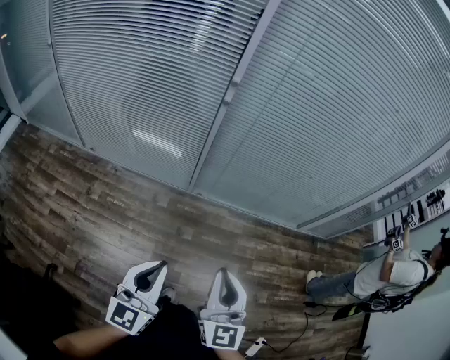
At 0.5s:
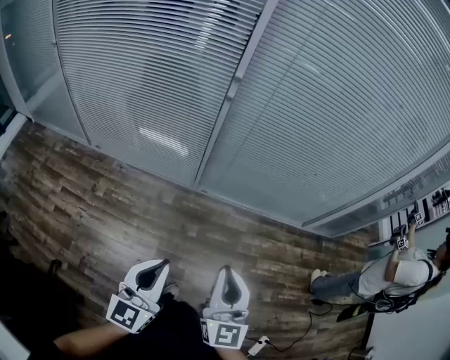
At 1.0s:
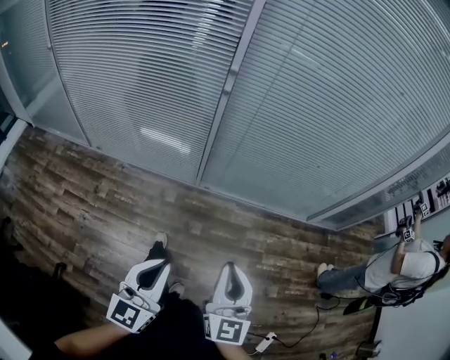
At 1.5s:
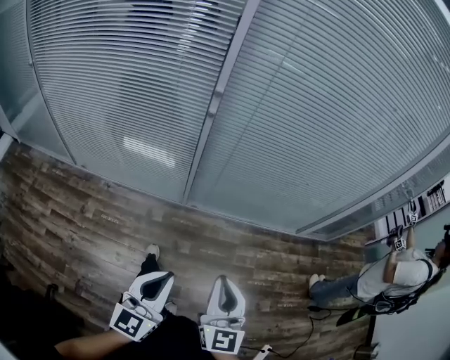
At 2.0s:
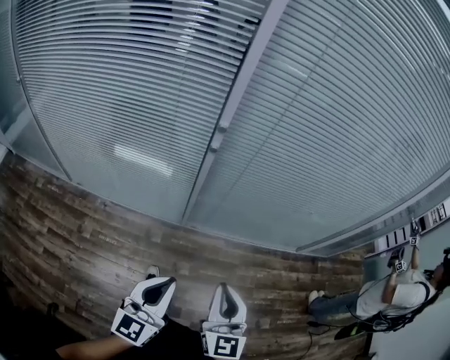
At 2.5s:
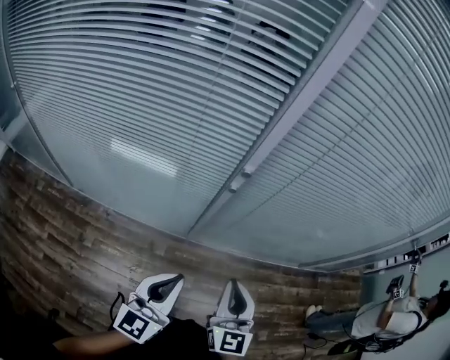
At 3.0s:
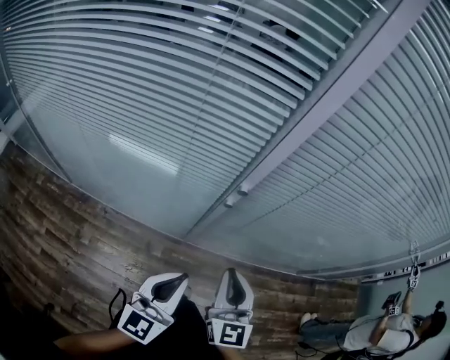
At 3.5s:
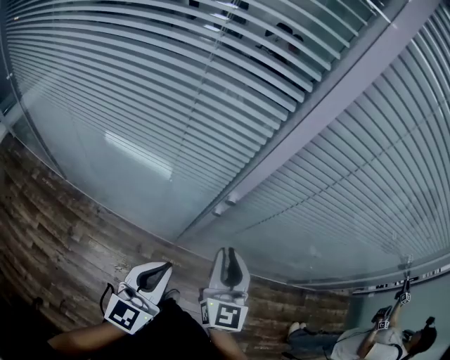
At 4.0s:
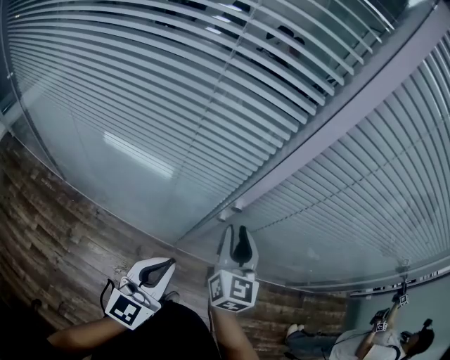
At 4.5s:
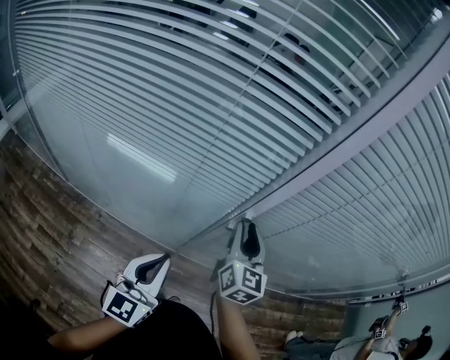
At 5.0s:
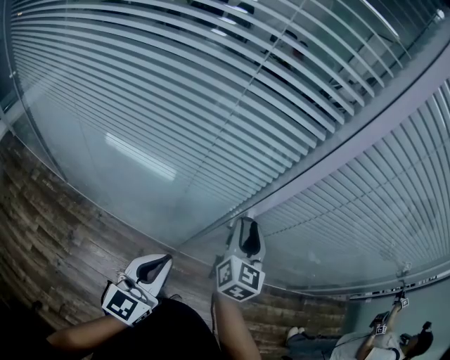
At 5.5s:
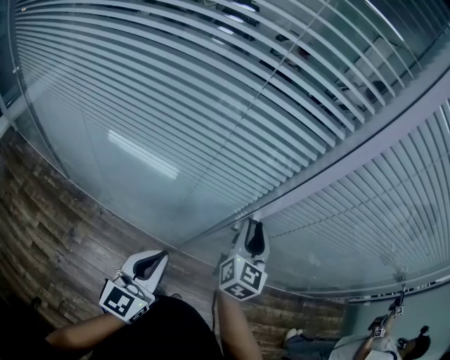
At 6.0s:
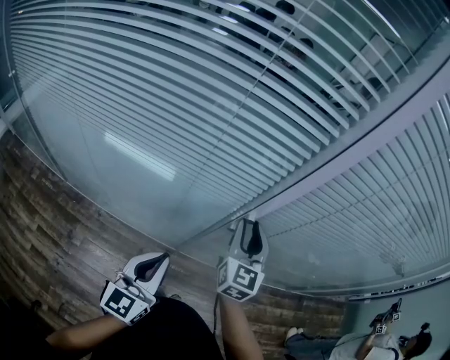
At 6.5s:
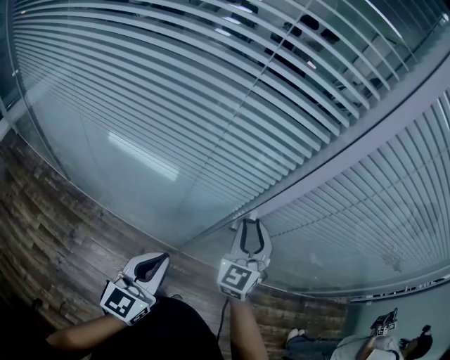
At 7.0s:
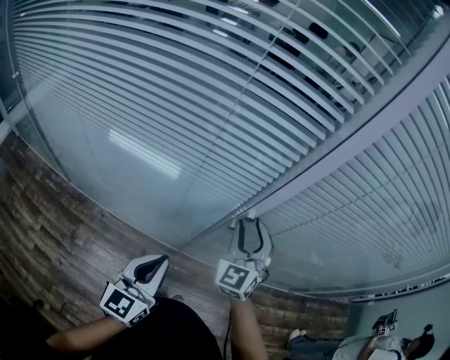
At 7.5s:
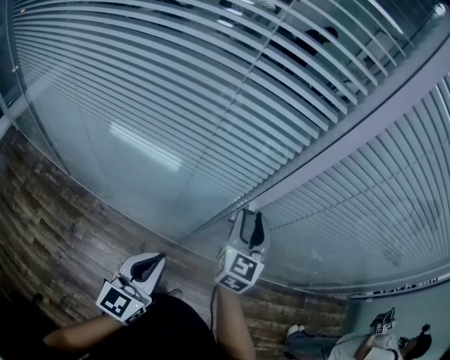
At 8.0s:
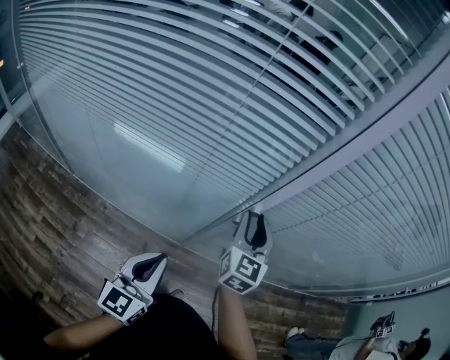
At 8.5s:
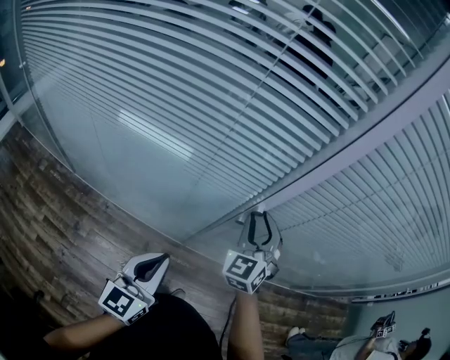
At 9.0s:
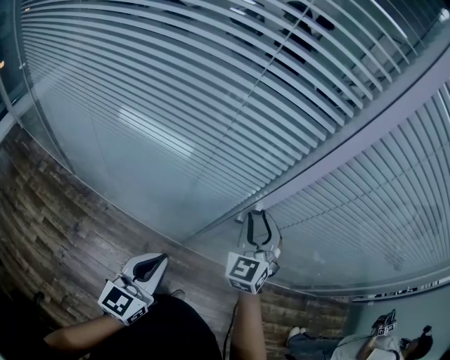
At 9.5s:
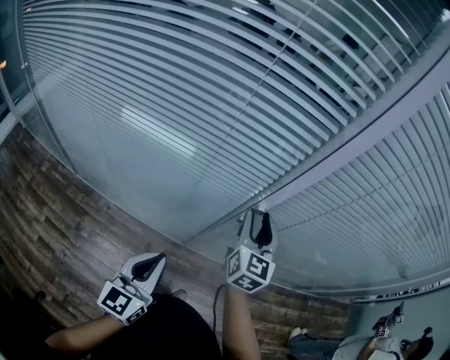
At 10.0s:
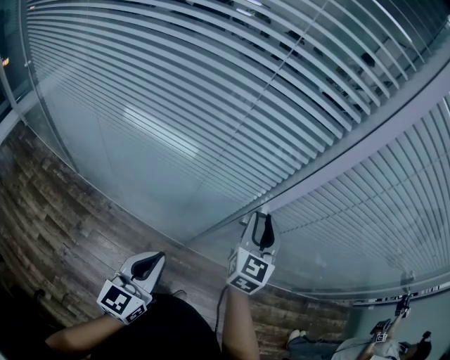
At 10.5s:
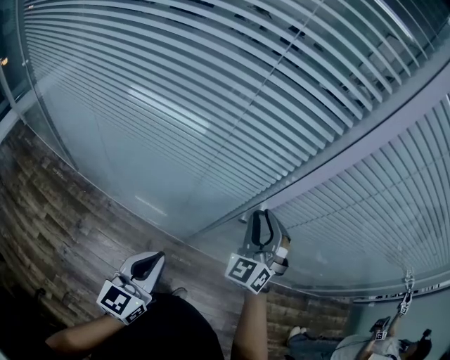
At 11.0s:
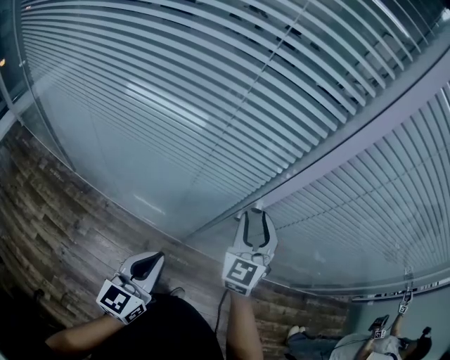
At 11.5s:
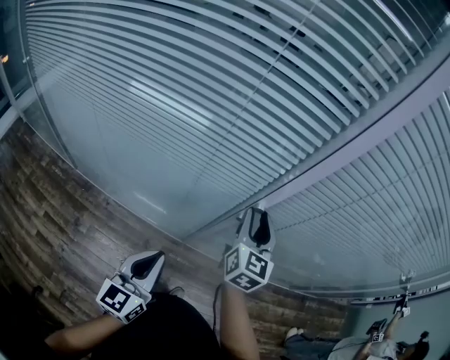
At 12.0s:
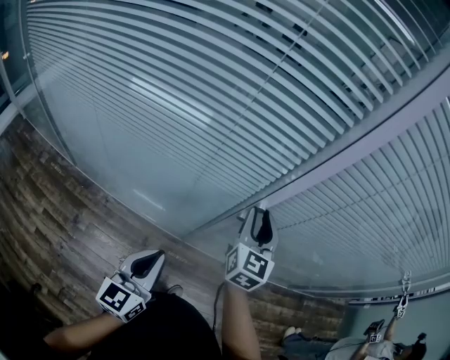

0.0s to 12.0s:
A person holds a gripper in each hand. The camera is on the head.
0.0s to 2.0s: Both grippers travel together forward, some 20 cm.
2.0s to 4.0s: Both grippers travel together forward, about 35 cm. The right gripper opens its fingers.
4.0s to 6.0s: The left gripper travels to the left by some 5 cm.

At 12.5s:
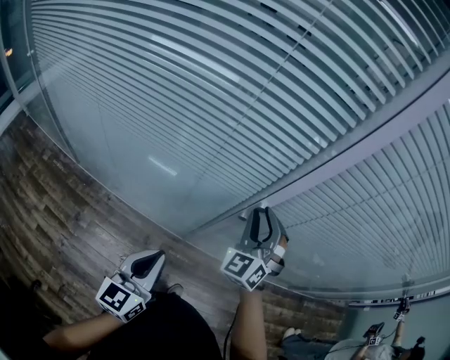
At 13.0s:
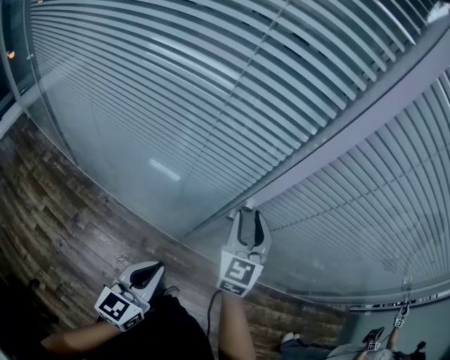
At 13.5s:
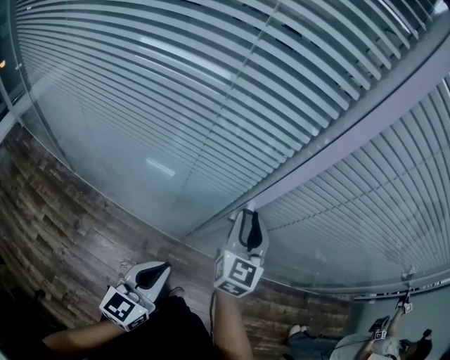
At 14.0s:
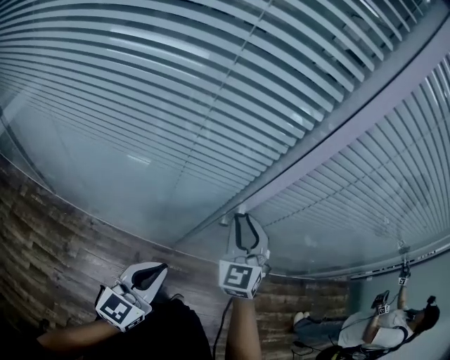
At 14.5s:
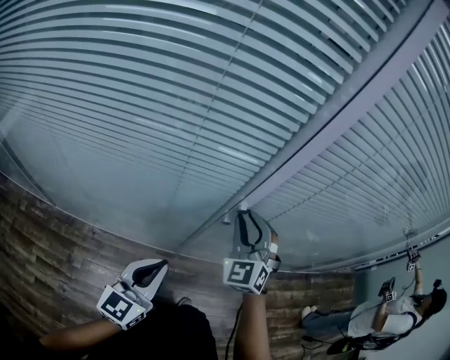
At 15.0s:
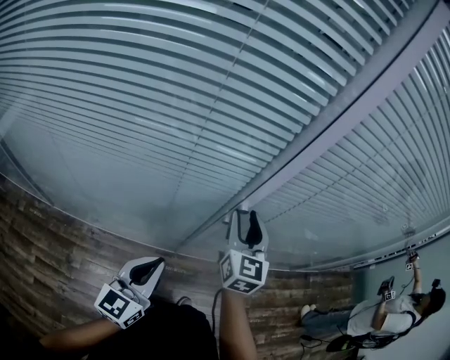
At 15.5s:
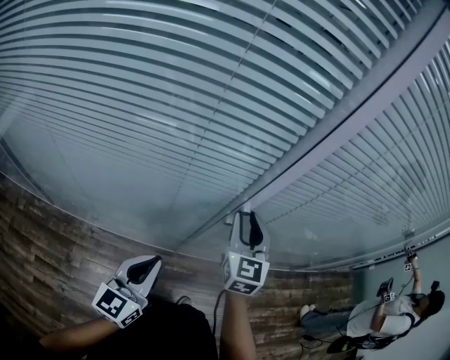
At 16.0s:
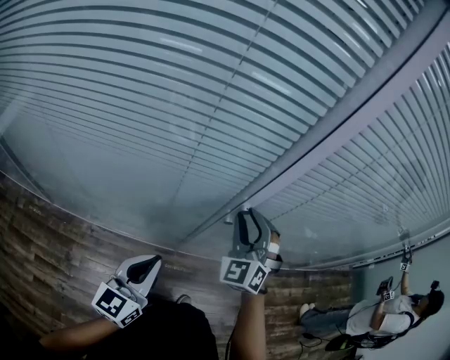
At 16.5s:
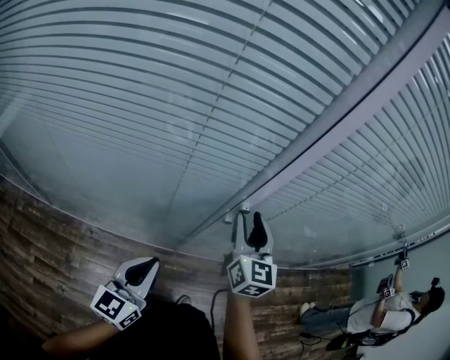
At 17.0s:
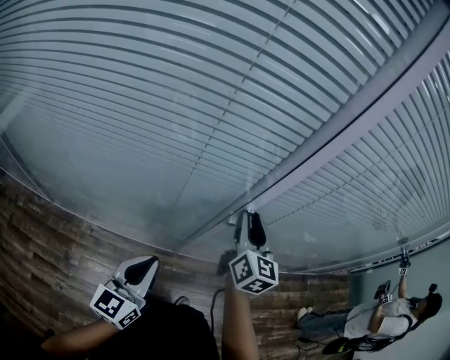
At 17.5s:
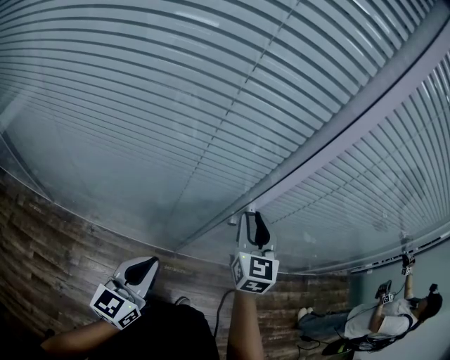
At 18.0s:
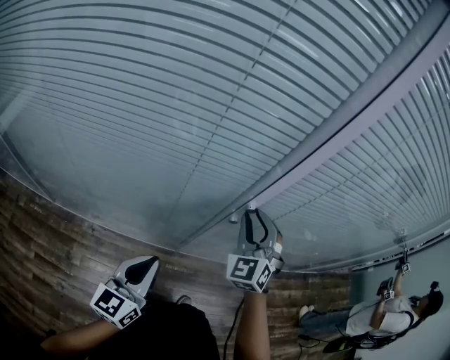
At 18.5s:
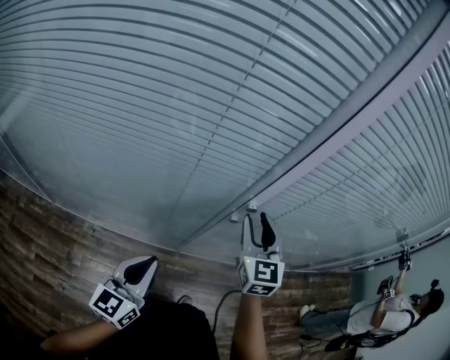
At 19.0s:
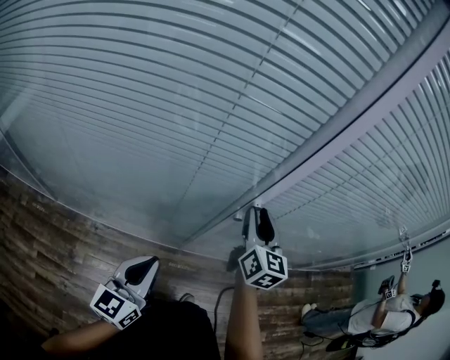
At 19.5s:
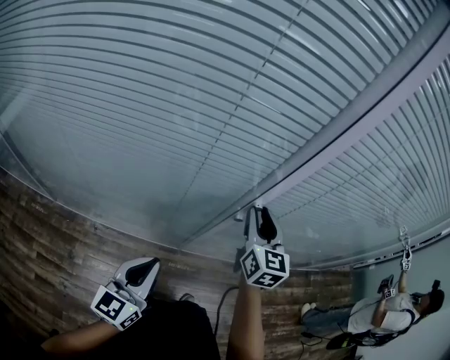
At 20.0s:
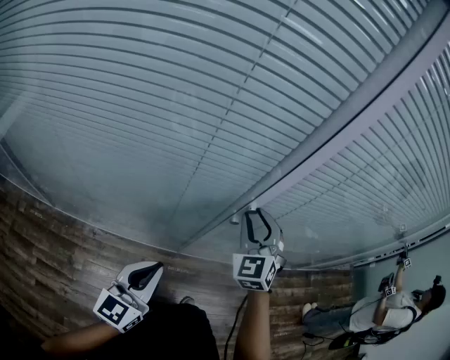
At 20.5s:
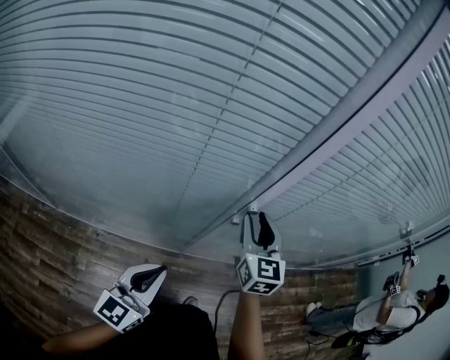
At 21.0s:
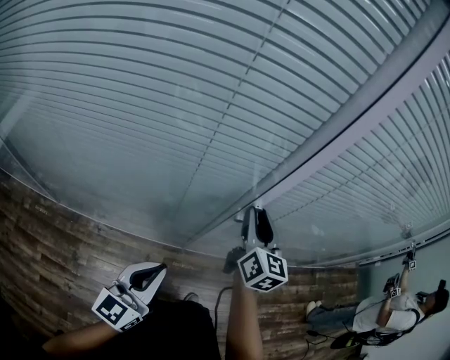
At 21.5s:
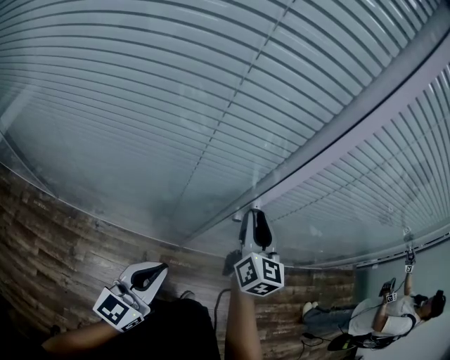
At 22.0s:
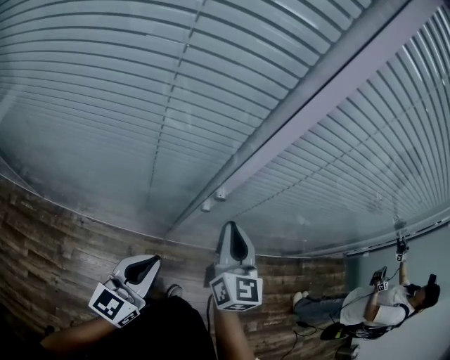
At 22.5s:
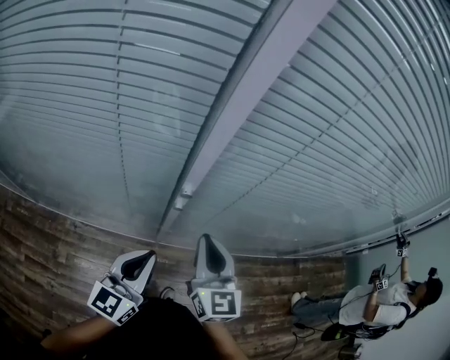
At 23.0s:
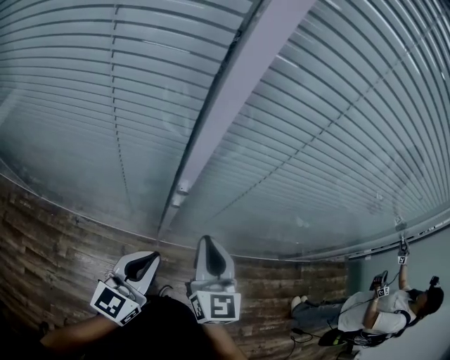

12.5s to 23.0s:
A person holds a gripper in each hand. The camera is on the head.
12.5s to 14.5s: The left gripper rotates approximately 20 degrees.
14.5s to 16.5s: The right gripper twists about 50 degrees clockwise, seen from behind.
21.0s to 23.0s: The right gripper goes about 10 cm backward and to the right, and closes; the left gripper goes roughly 15 cm to the right.

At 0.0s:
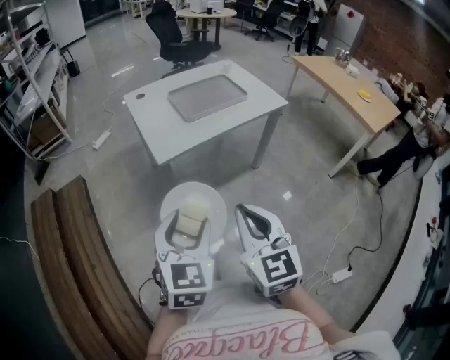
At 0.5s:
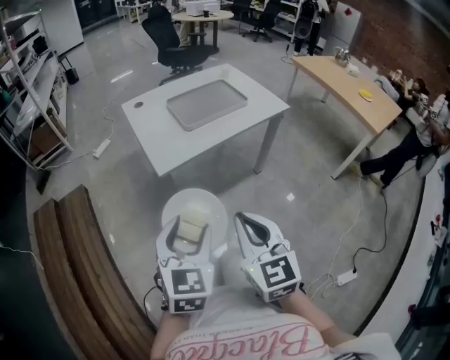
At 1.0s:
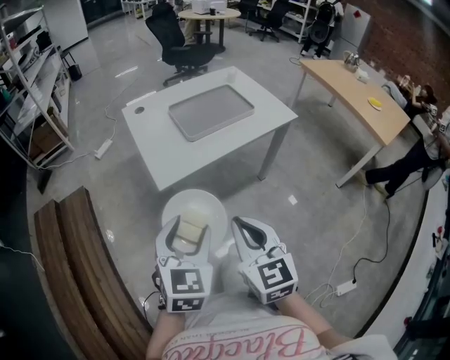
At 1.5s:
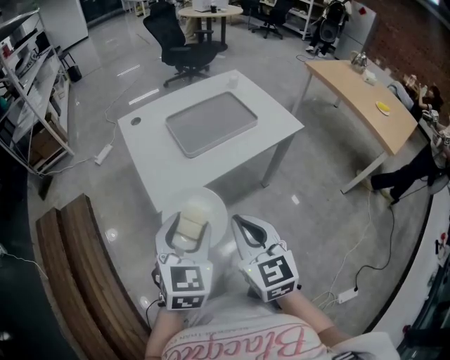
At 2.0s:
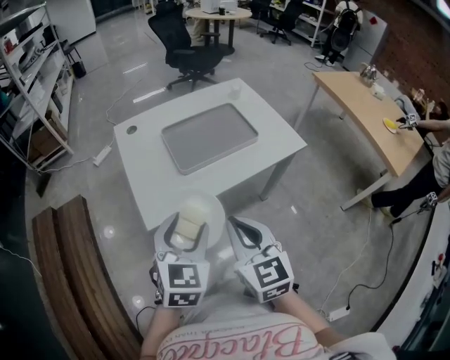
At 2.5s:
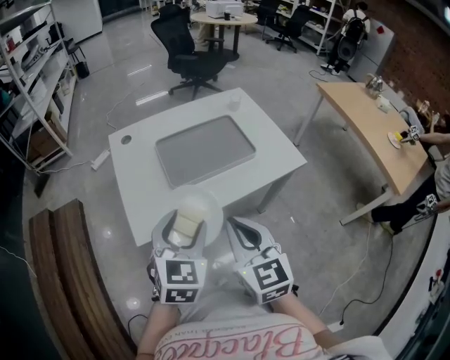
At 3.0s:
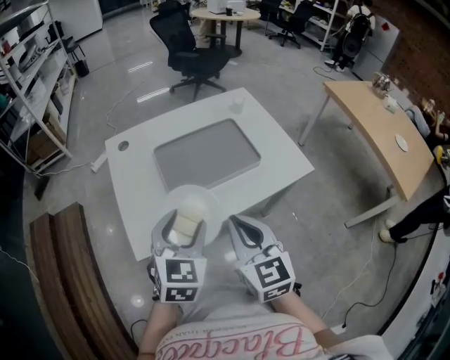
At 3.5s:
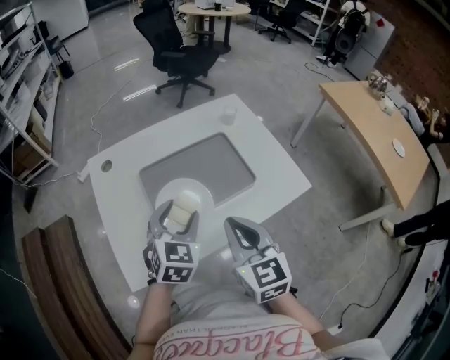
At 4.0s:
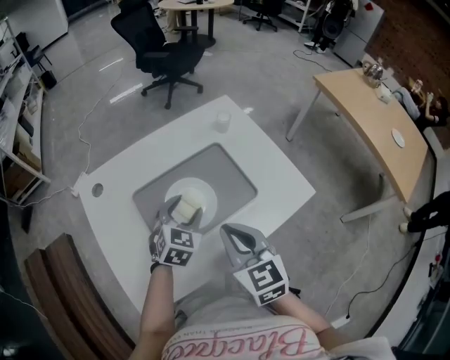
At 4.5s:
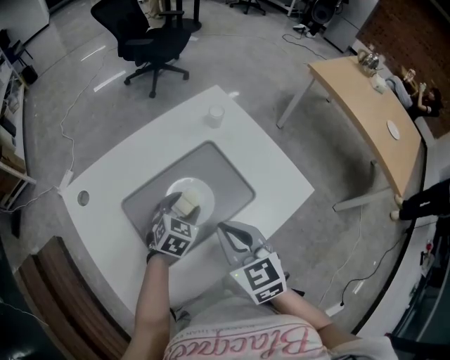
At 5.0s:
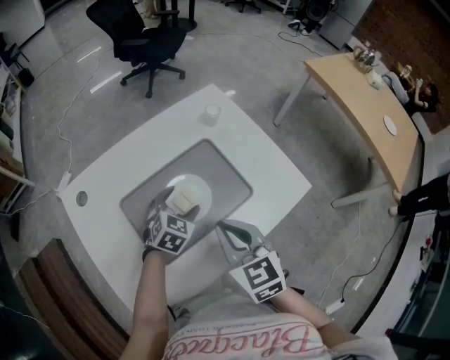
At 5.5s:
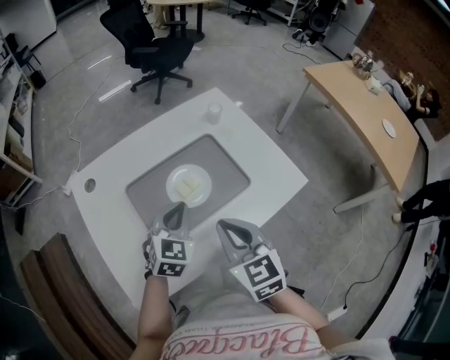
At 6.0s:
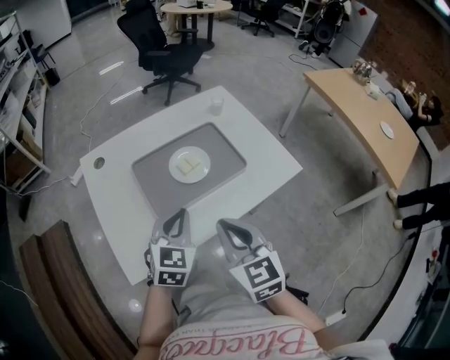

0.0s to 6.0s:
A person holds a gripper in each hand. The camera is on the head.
0.0s to 2.0s: The two grippers go some 20 cm forward.
2.0s to 4.0s: The left gripper travels forward and downward by roughly 35 cm. The right gripper travels forward by approximately 20 cm.
4.0s to 6.0s: The left gripper goes about 15 cm backward and upward, and closes. The right gripper heads backward, covering roughly 10 cm.
